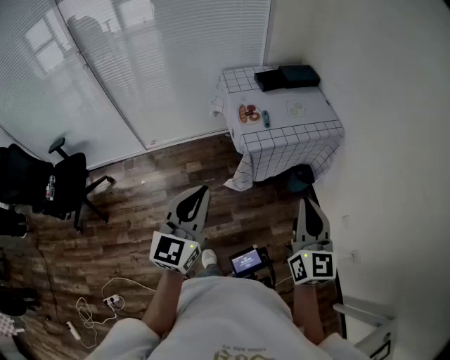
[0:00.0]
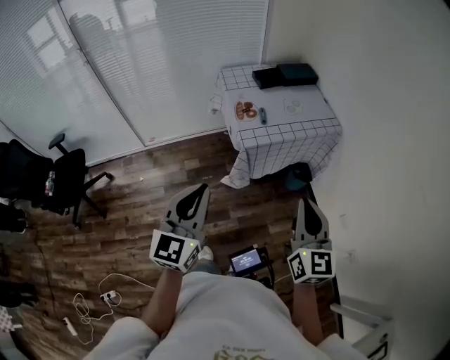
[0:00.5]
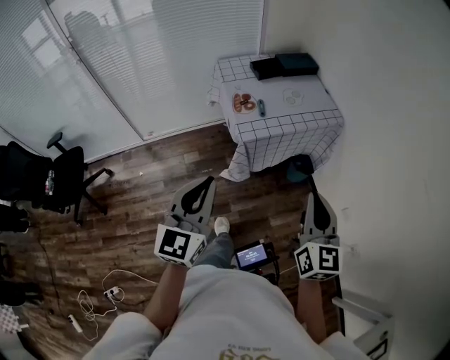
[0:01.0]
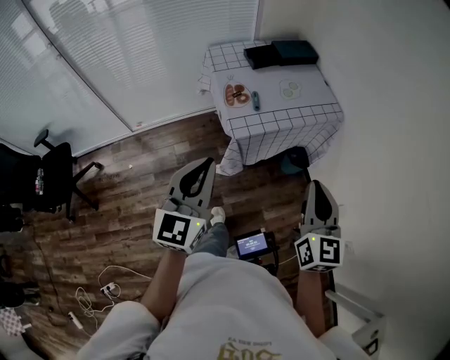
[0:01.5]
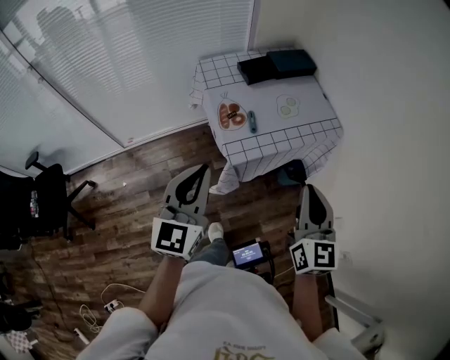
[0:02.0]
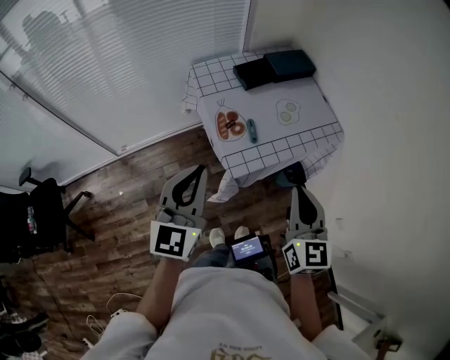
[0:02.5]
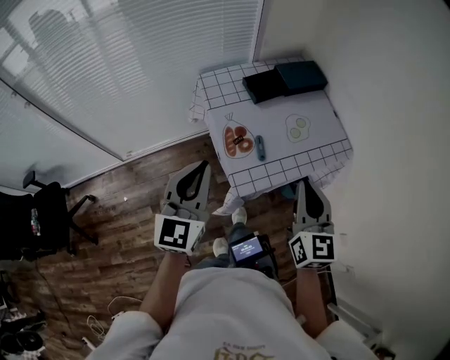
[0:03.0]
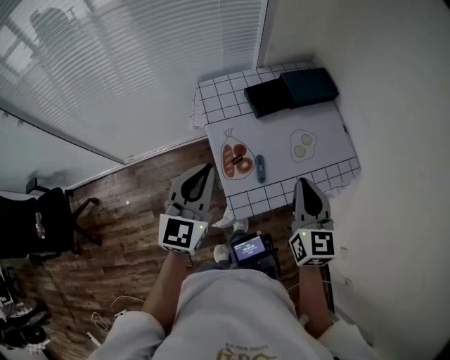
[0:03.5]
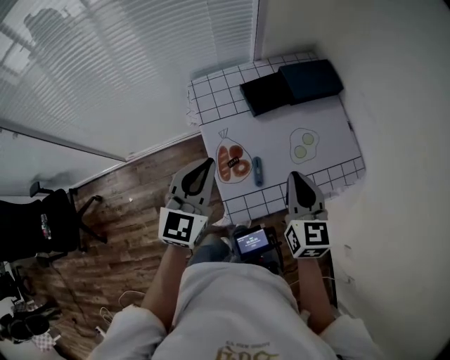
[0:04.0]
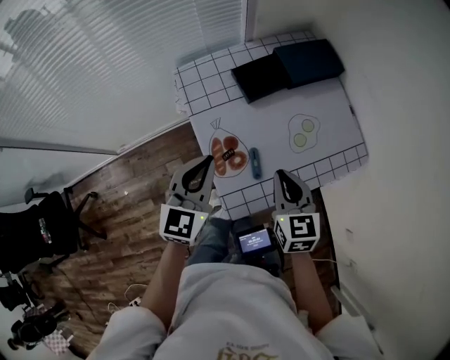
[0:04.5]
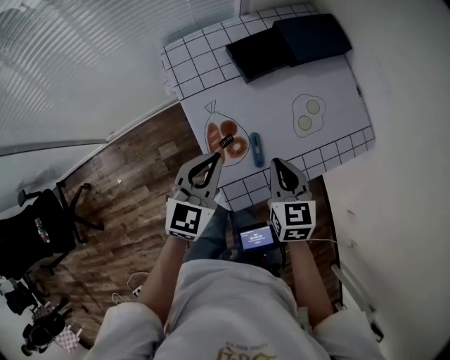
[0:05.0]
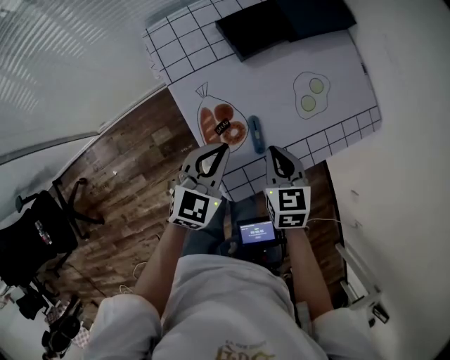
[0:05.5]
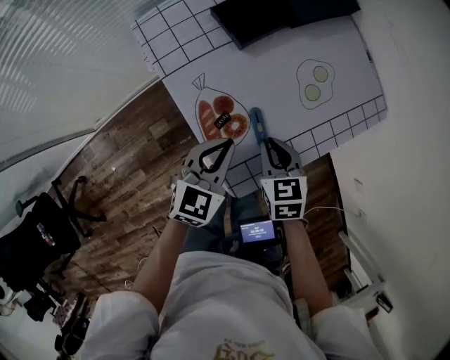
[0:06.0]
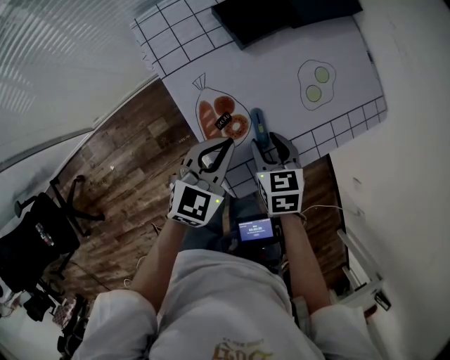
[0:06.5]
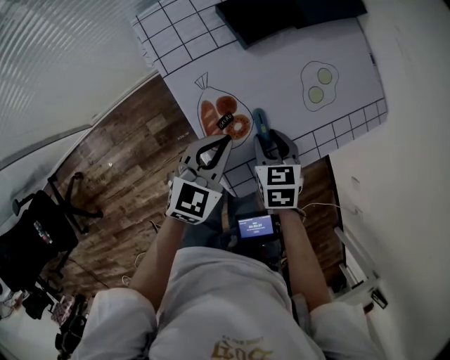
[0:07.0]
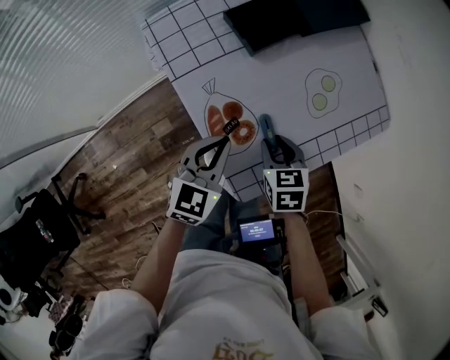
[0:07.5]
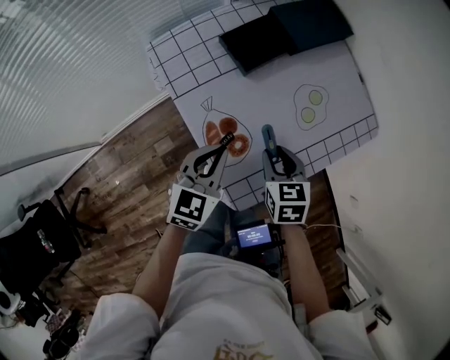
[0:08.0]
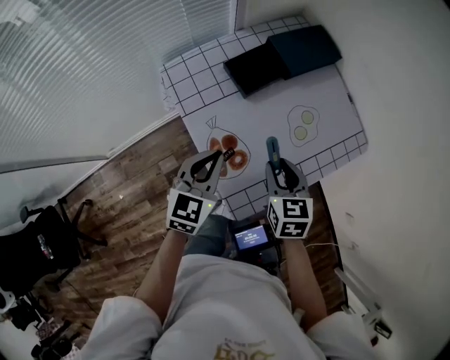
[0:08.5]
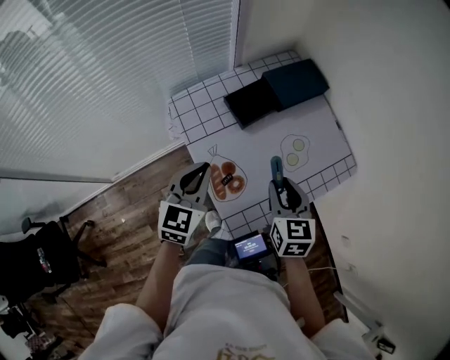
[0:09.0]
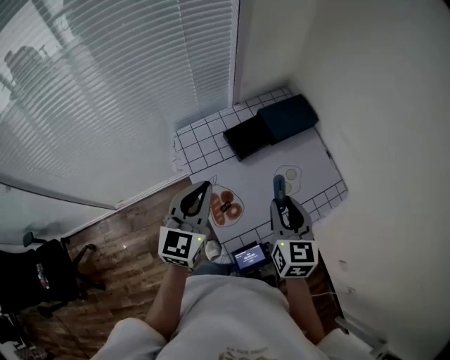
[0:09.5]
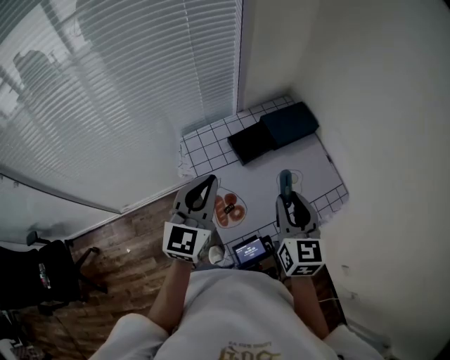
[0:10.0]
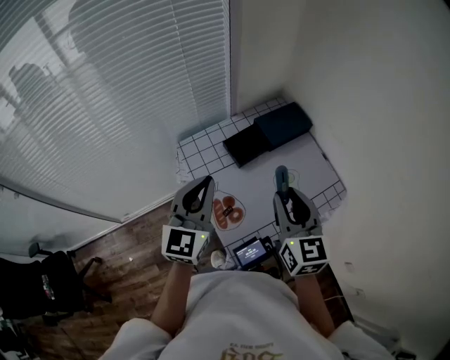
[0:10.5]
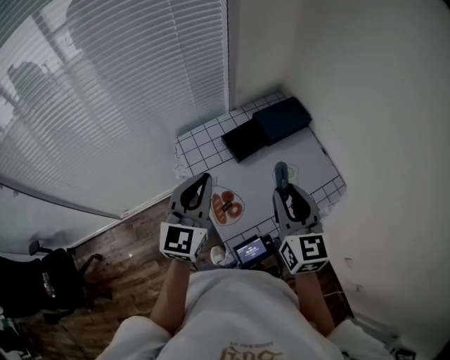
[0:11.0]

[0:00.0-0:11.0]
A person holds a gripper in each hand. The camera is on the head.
0:00.0 to 0:02.0: The two grippers go approximately 20 cm forward.
0:02.0 to 0:03.5: Both grippers move forward, about 25 cm.
0:03.5 to 0:05.5: Both grippers travel together downward, about 20 cm. The right gripper angles its fingers downward, by roughly 30 degrees, while the left gripper turns by about 30 degrees.
0:05.5 to 0:07.5: The right gripper shifts by about 5 cm, and opens its fingers.
0:07.5 to 0:09.0: Both grippers move upward, approximately 15 cm. The right gripper turns by some 20 degrees.
0:09.0 to 0:11.0: The grippers both shift upward by roughly 15 cm. The right gripper changes its angle by approximately 20 degrees.

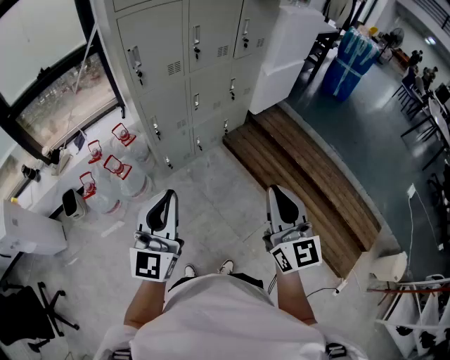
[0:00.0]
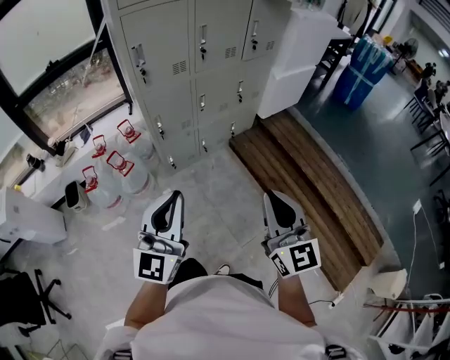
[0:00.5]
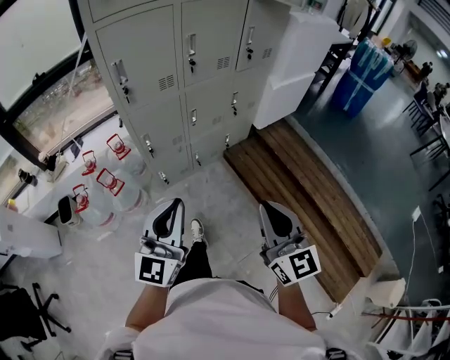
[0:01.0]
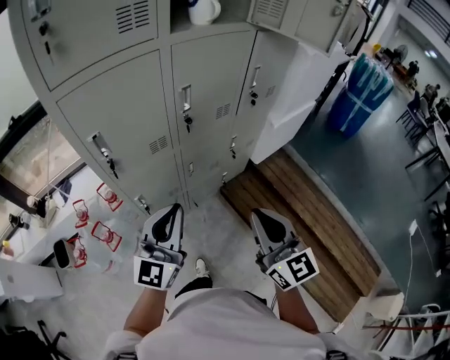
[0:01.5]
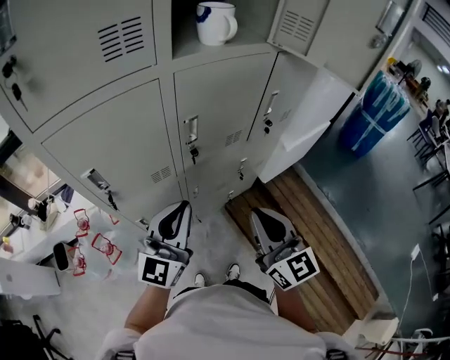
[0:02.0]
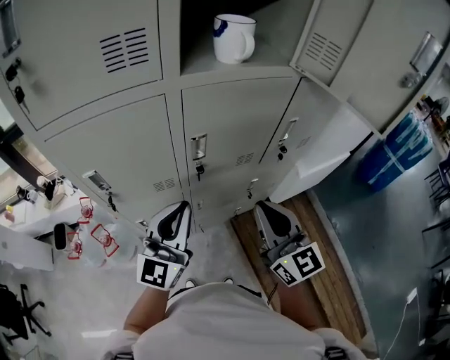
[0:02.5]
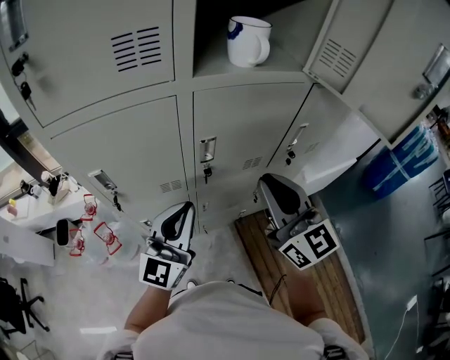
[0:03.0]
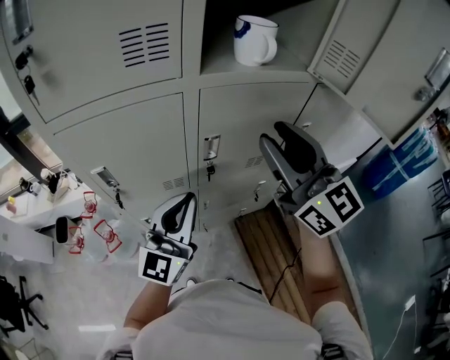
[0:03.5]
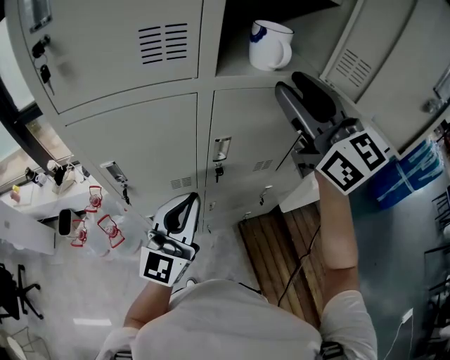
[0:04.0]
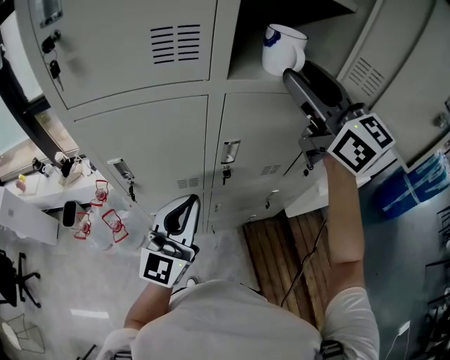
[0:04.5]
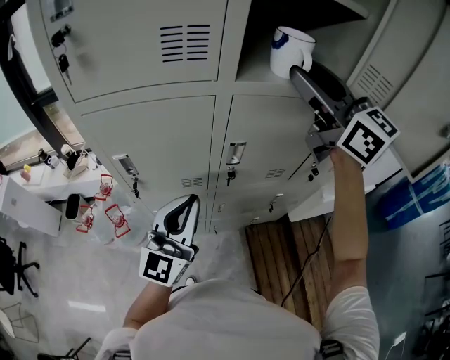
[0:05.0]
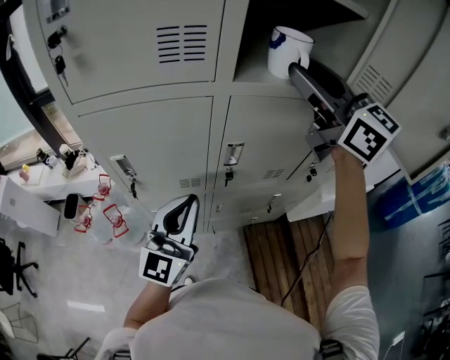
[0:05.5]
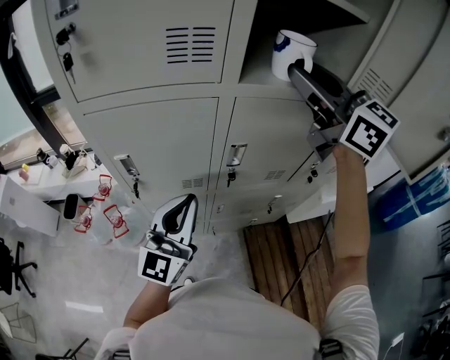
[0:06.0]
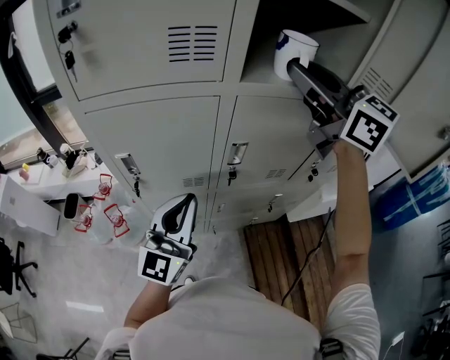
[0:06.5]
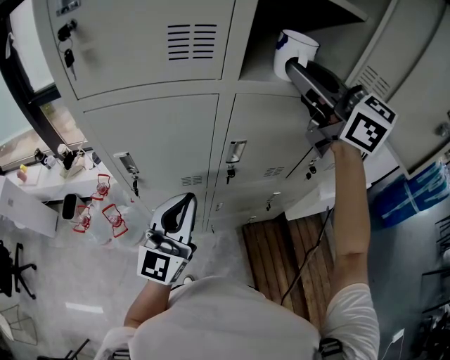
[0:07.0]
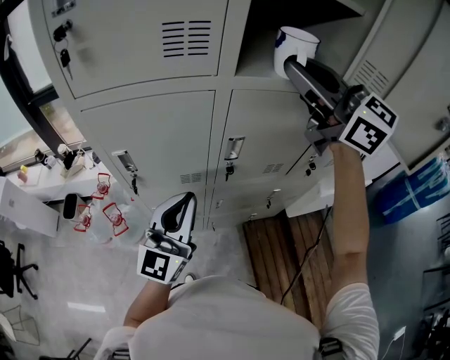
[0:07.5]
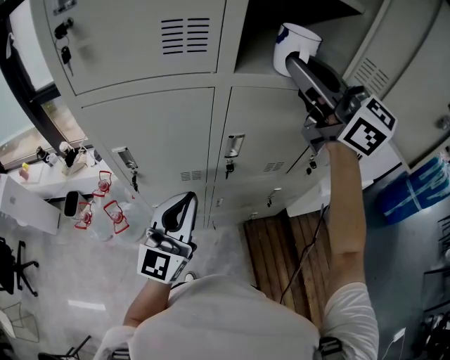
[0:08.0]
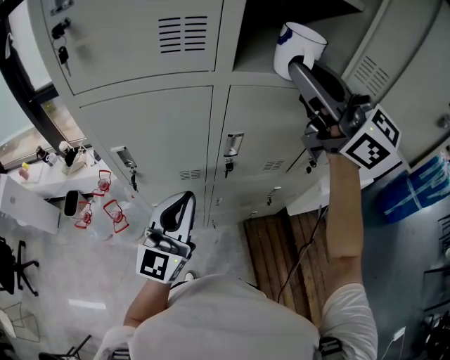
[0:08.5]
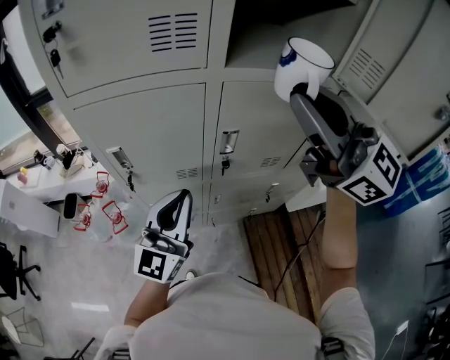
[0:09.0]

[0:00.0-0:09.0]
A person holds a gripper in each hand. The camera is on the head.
0:00.0 to 0:02.0: Both grippers are carried forward, approximately 50 cm.
0:02.0 to 0:04.5: The left gripper changes place by some 5 cm, while the right gripper heads upward and forward, covering approximately 35 cm, turns by approximately 30 degrees, and opens its fingers.
0:04.5 to 0:07.0: The right gripper closes its fingers.
0:07.0 to 0:09.0: The right gripper travels backward by some 10 cm.

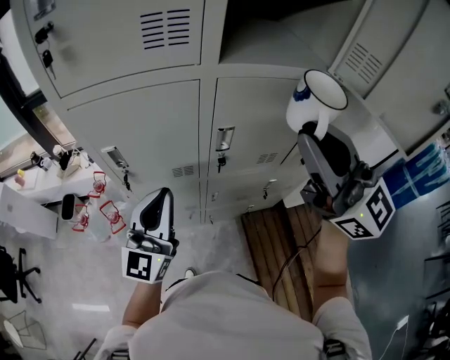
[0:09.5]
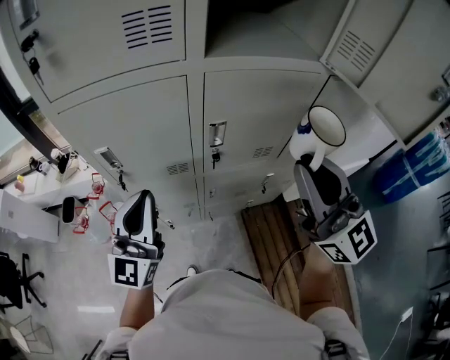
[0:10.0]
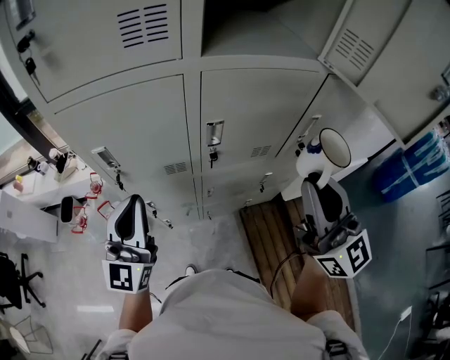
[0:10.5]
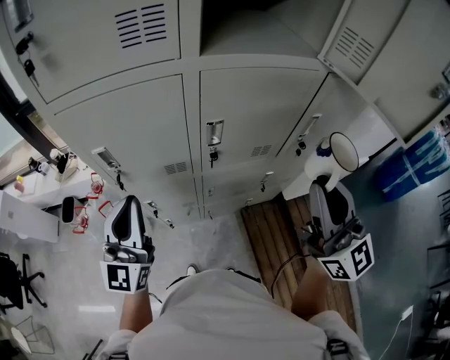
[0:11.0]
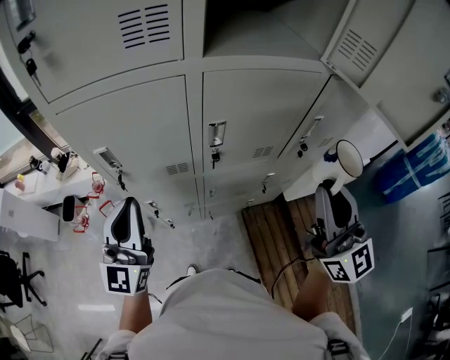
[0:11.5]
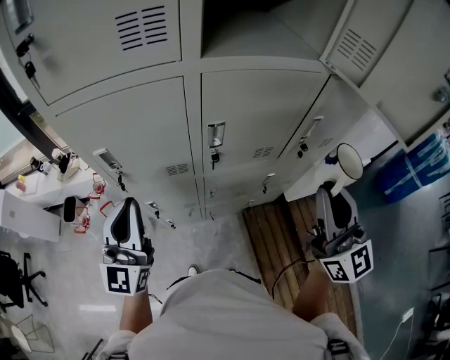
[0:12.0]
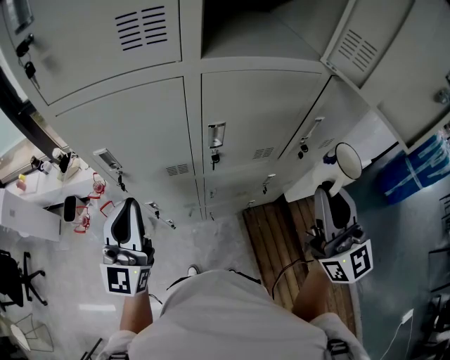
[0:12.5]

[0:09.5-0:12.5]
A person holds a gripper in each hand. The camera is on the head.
0:09.5 to 0:11.0: The left gripper shifts about 5 cm to the left. The right gripper is displaced downward, backward and to the right by roughly 10 cm, and rotates some 20 degrees.
0:11.0 to 0:12.5: There are only small adjustments of the grippers.

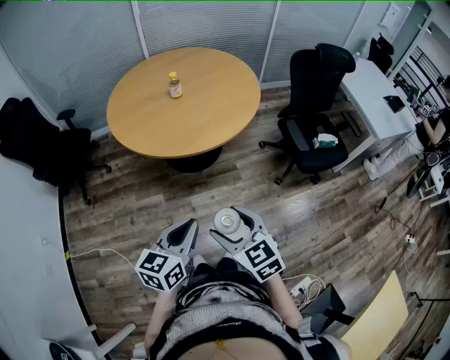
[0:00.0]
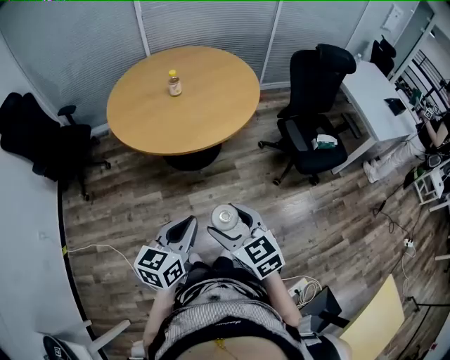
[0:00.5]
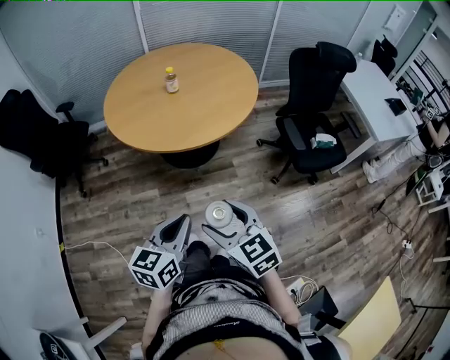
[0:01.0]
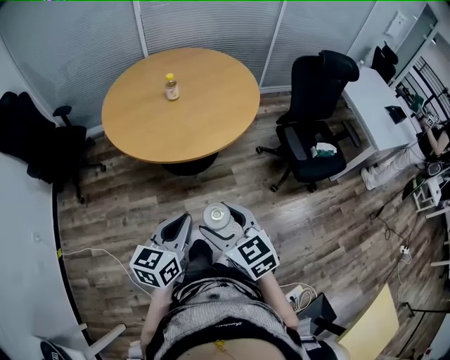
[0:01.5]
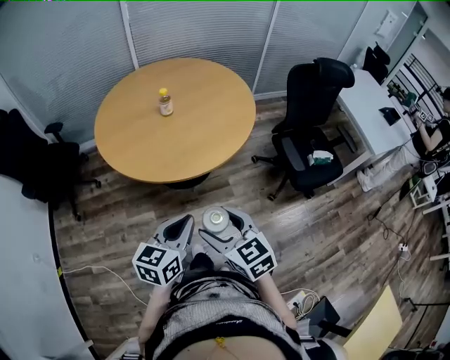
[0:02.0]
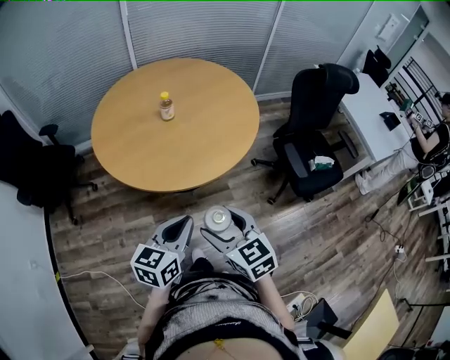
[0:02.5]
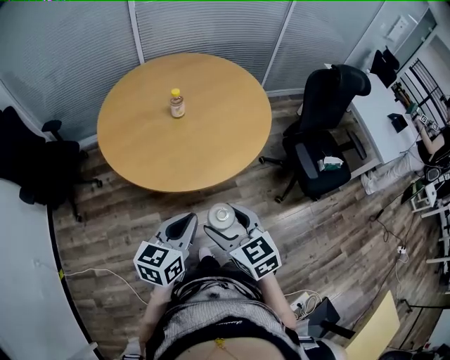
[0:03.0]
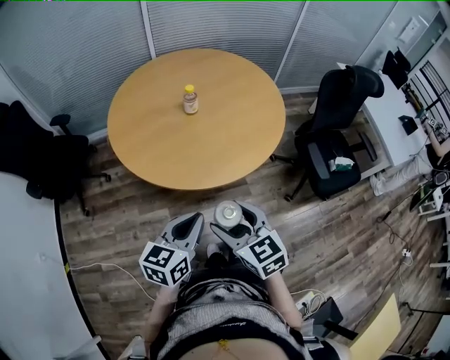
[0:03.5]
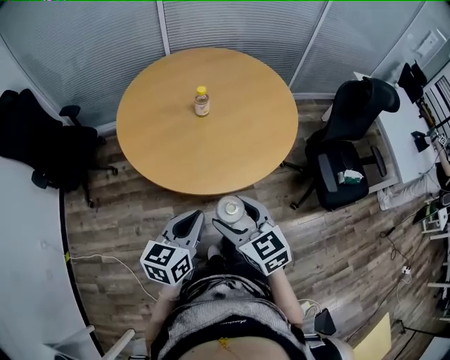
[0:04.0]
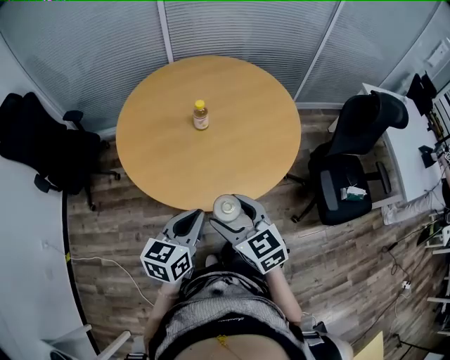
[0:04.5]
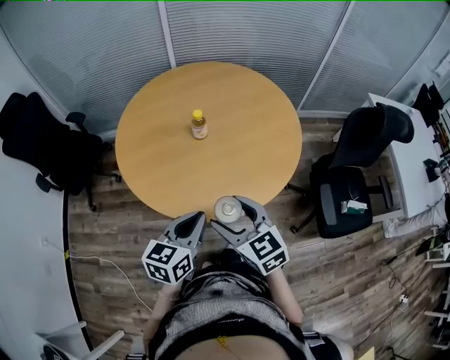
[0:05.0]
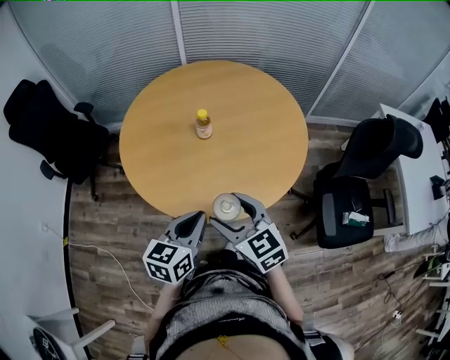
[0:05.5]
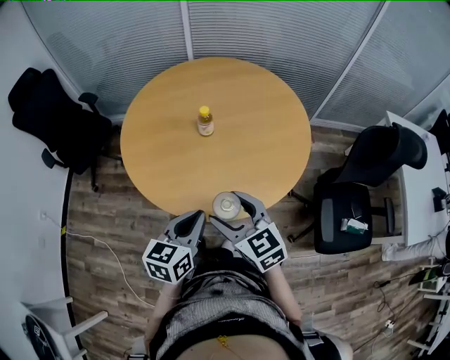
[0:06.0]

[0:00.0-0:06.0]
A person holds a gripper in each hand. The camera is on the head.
0:00.0 to 0:02.0: Both grippers move forward, about 10 cm.
0:02.0 to 0:04.0: Both grippers move forward and to the left, some 15 cm.
0:04.0 to 0:06.0: The right gripper is displaced forward and to the right by some 15 cm; the left gripper goes some 15 cm to the right and forward.
